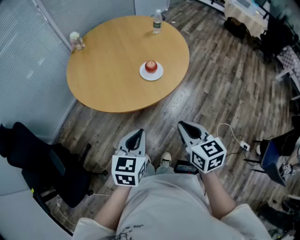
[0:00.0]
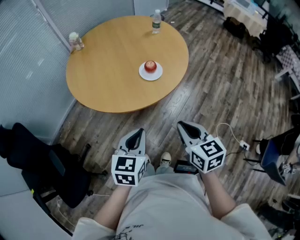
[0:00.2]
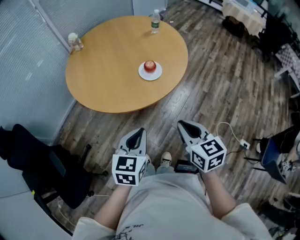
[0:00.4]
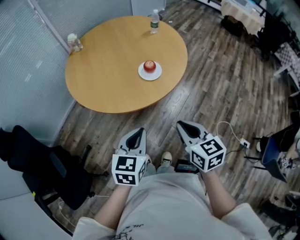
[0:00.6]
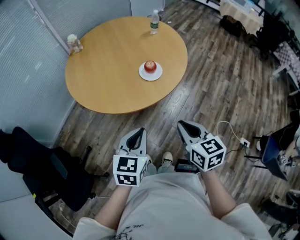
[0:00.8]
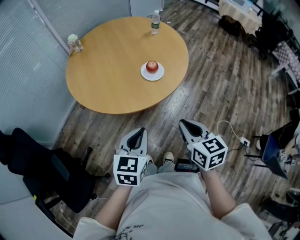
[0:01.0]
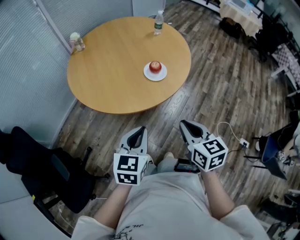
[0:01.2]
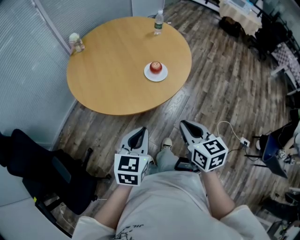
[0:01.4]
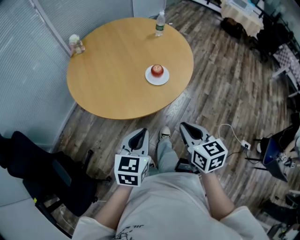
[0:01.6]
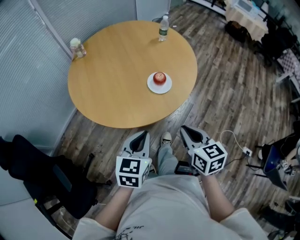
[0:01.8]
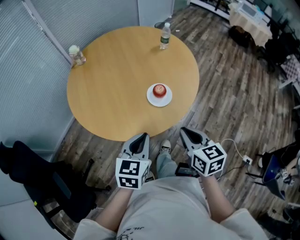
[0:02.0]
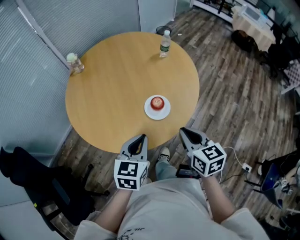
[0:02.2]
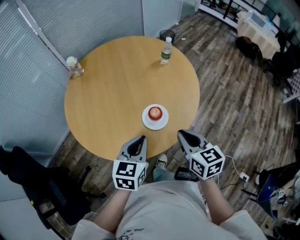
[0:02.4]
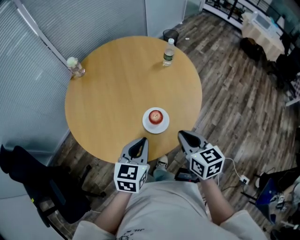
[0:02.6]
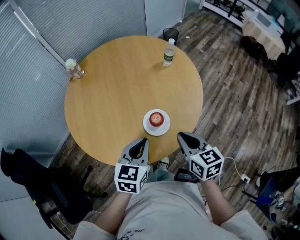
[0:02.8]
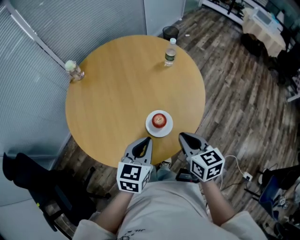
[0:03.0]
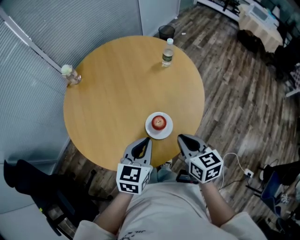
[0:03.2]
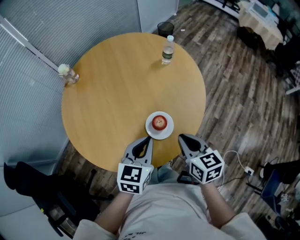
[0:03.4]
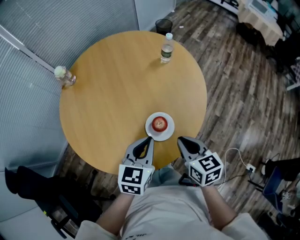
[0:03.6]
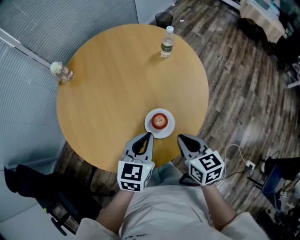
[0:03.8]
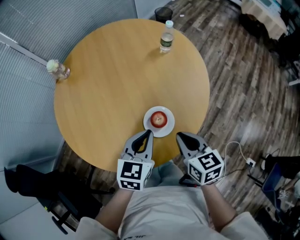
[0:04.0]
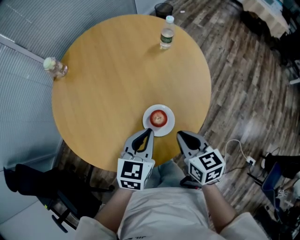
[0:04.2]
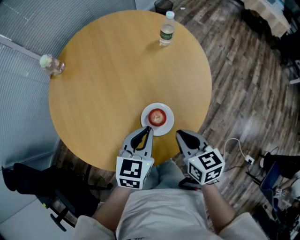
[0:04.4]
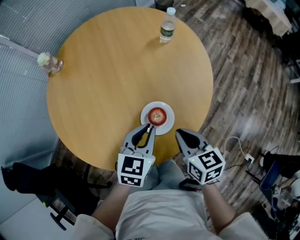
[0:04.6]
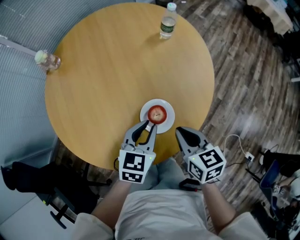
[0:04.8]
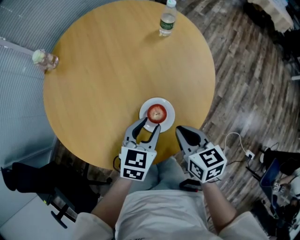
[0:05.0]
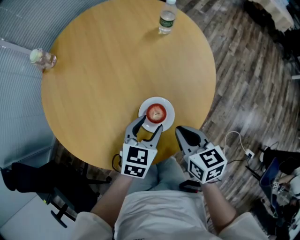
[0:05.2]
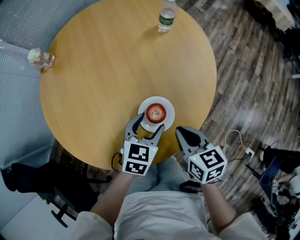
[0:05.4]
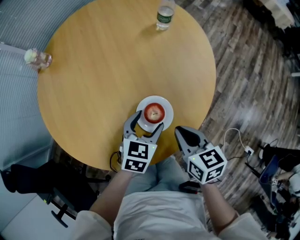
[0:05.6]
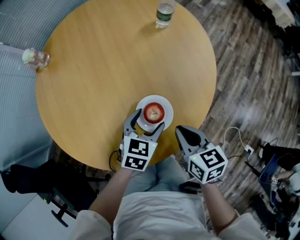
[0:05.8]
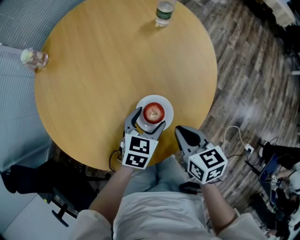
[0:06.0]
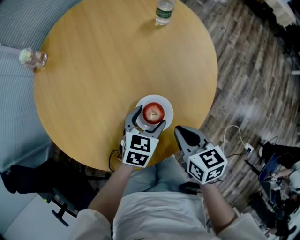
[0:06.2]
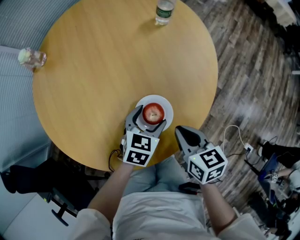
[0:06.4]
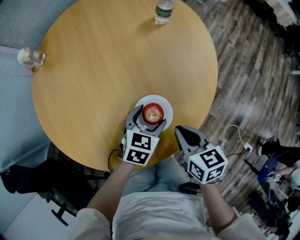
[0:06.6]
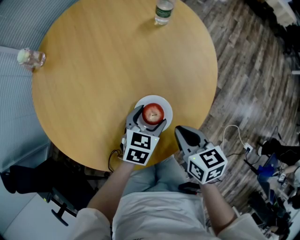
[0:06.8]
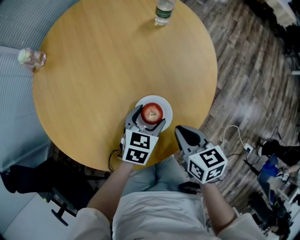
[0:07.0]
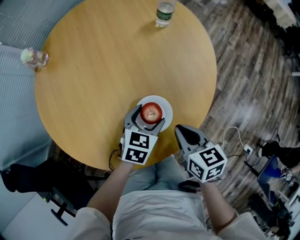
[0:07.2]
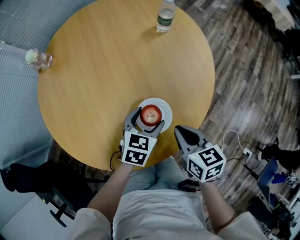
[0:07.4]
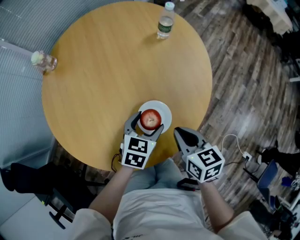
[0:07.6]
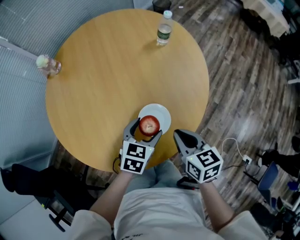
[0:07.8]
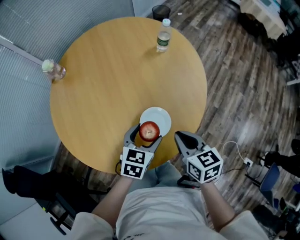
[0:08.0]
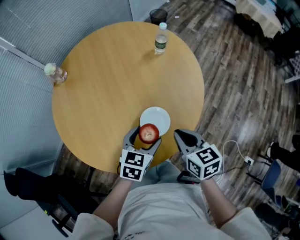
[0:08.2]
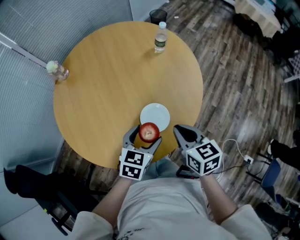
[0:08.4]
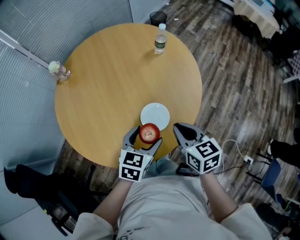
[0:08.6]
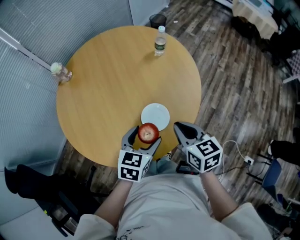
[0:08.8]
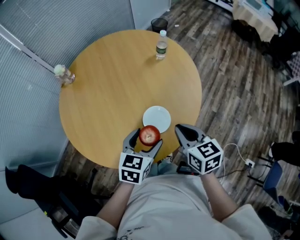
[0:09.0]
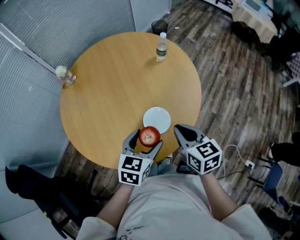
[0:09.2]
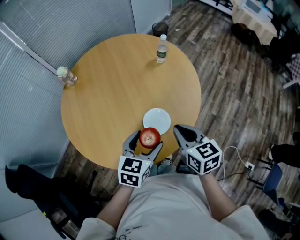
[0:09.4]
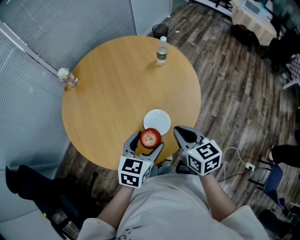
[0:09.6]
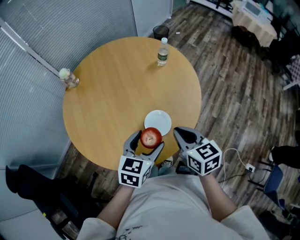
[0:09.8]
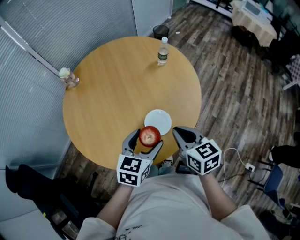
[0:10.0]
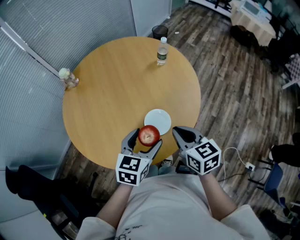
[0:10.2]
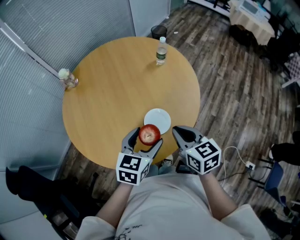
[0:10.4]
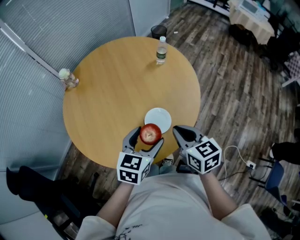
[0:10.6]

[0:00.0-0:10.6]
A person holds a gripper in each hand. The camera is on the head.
0:00.0 to 0:01.6: The left gripper moves approximately 5 cm. Meanwhile the right gripper ends up about 5 cm from where it was.
0:01.6 to 0:03.0: Both grippers travel together forward, some 25 cm.
0:03.0 to 0:04.6: The left gripper travels downward and forward by some 10 cm, while the right gripper travels downward by about 10 cm.
0:04.6 to 0:06.0: The left gripper shifts some 10 cm downward, and opens its fingers.
0:06.0 to 0:07.6: There are only small adjustments of the grippers.
0:07.6 to 0:09.0: The left gripper is displaced upward and backward by some 15 cm, while the right gripper moves upward, approximately 10 cm.
0:09.0 to 0:10.6: There are only small adjustments of the grippers.

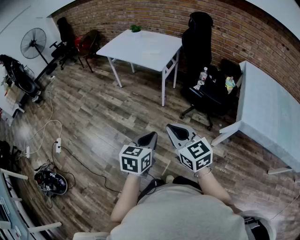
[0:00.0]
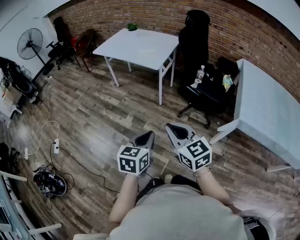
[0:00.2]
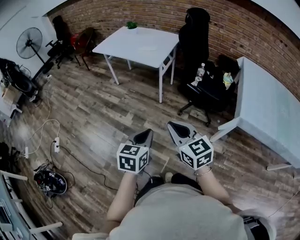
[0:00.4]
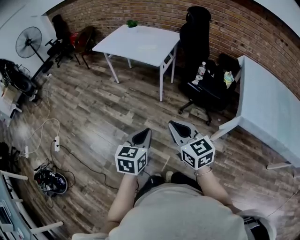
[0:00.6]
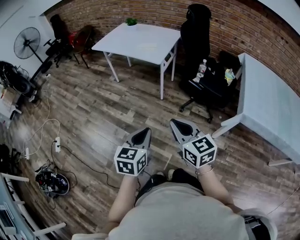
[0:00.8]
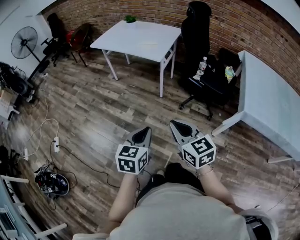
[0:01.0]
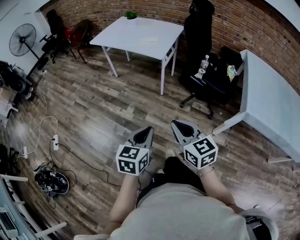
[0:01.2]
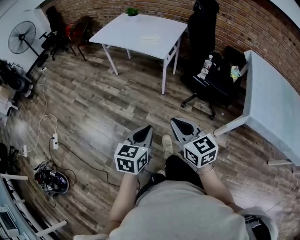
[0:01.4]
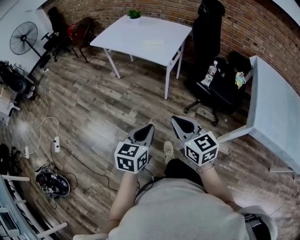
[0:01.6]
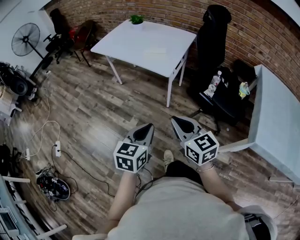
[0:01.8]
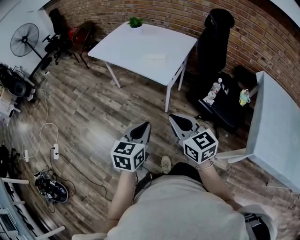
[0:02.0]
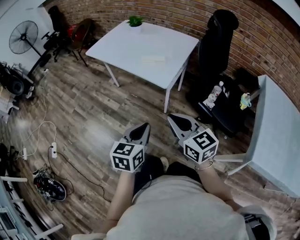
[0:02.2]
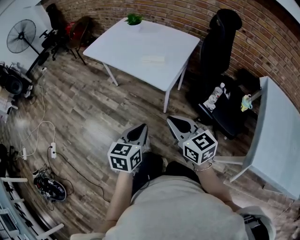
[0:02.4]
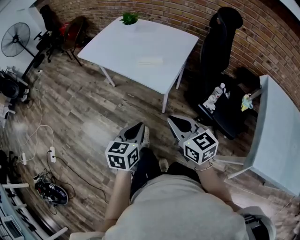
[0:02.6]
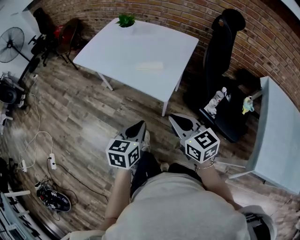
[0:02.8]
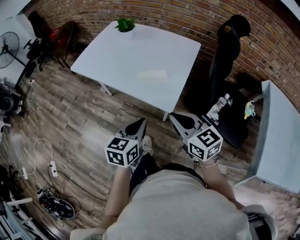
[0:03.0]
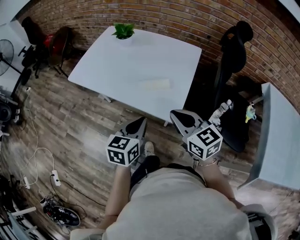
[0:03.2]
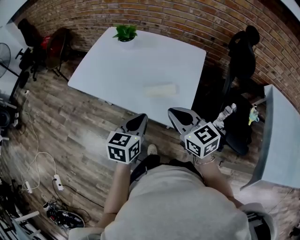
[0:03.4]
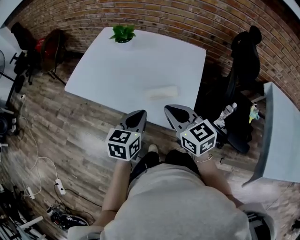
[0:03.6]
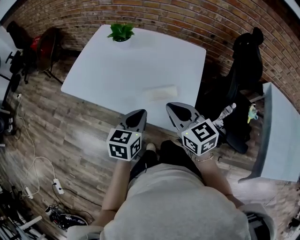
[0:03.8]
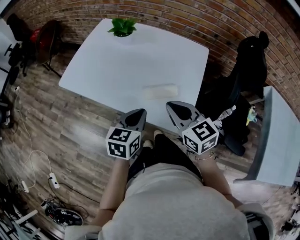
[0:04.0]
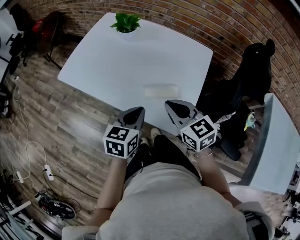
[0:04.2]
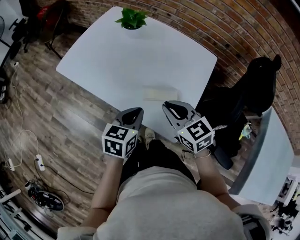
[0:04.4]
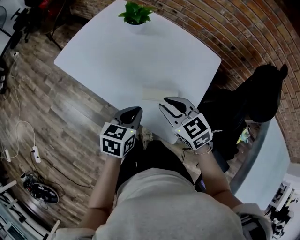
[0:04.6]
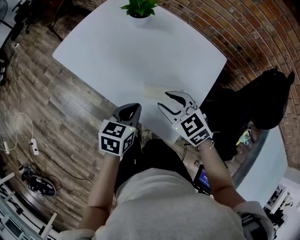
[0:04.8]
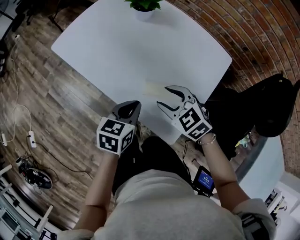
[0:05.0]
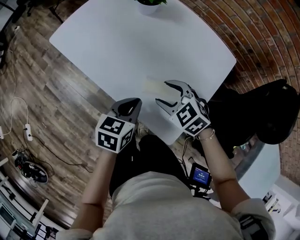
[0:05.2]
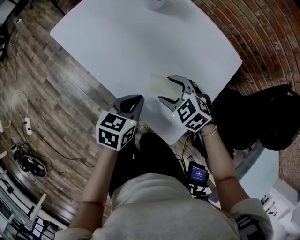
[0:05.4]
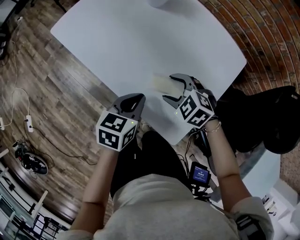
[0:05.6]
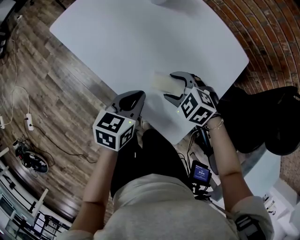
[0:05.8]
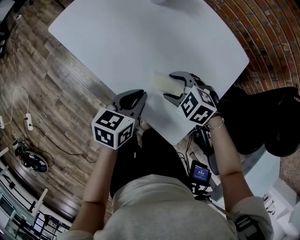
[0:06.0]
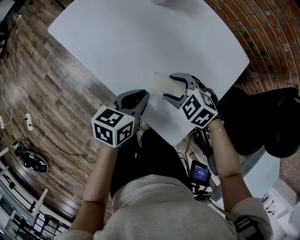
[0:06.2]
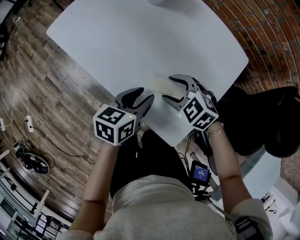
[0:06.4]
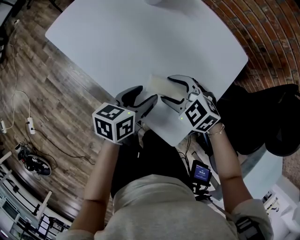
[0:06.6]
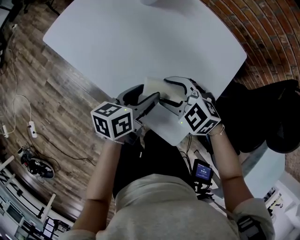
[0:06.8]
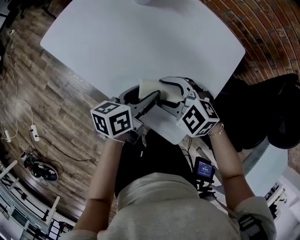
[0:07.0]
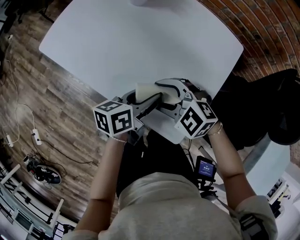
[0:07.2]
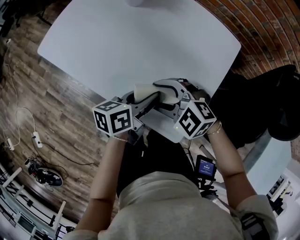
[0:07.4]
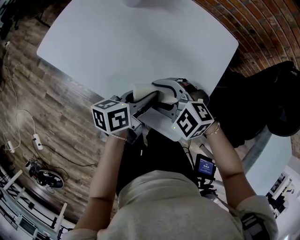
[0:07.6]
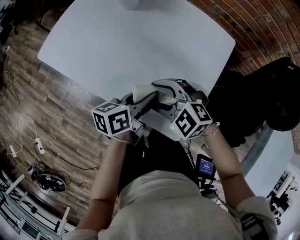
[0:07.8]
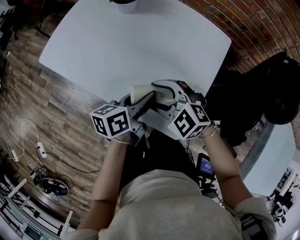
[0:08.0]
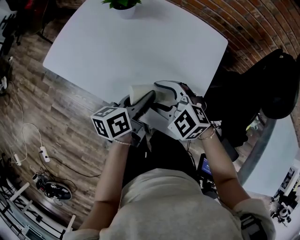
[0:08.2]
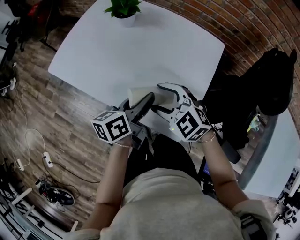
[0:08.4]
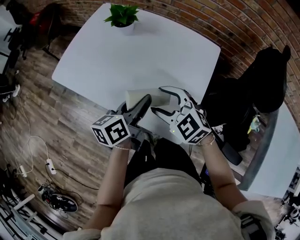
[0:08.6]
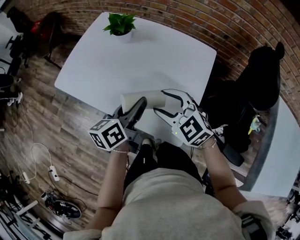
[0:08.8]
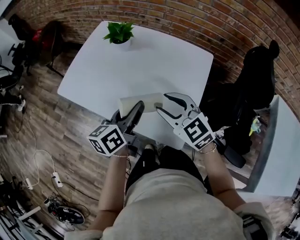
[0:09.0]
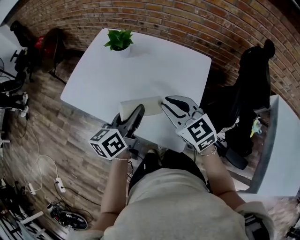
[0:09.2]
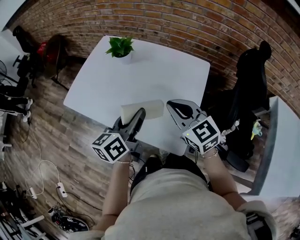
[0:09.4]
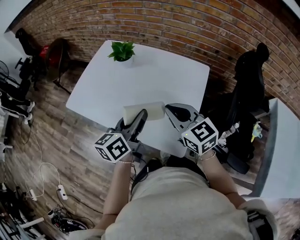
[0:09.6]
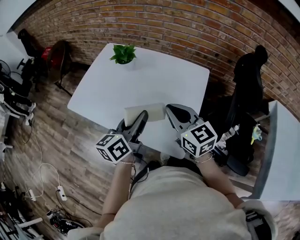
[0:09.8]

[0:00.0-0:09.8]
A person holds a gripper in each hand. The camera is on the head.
0:00.0 to 0:01.4: The left gripper heads to the left and forward, covering roughly 10 cm; the right gripper is displaced forward by approximately 5 cm.
0:01.4 to 0:02.8: The pair of grippers is taken forward, roughly 40 cm.
0:02.8 to 0:04.2: The two grippers go about 30 cm forward.
0:04.2 to 0:05.6: The left gripper shifts some 10 cm downward. Meanwhile the right gripper travels downward and forward by some 20 cm, angles its fingers downward, by roughly 30 degrees, and opens.
0:05.6 to 0:07.0: The left gripper swivels some 30 degrees, and opens up; the right gripper shifts by roughly 5 cm.
0:07.0 to 0:08.4: Both grippers move upward, some 5 cm. The left gripper closes up.
0:08.4 to 0:09.8: The left gripper travels upward by approximately 10 cm; the right gripper heads upward and to the right, covering roughly 15 cm, rotates roughly 50 degrees, and closes.

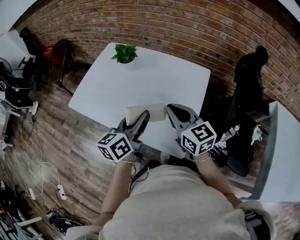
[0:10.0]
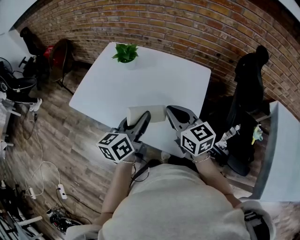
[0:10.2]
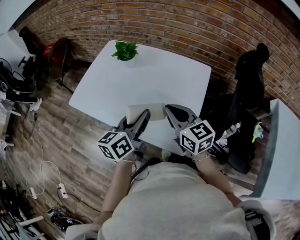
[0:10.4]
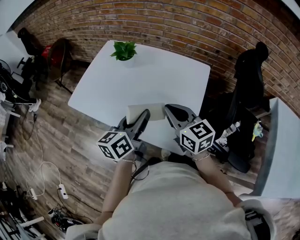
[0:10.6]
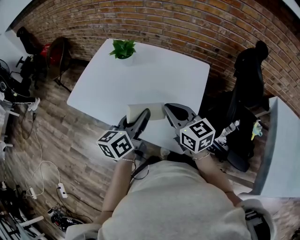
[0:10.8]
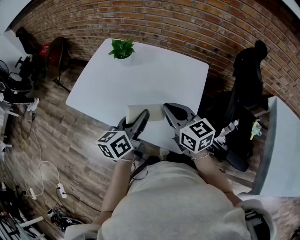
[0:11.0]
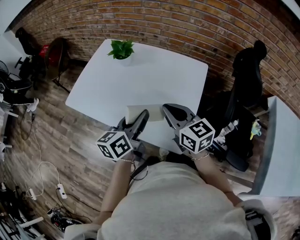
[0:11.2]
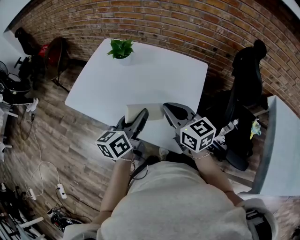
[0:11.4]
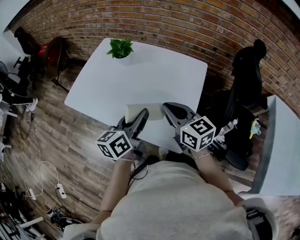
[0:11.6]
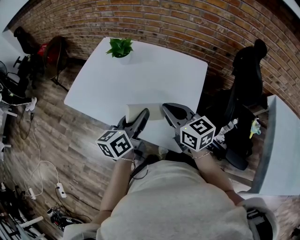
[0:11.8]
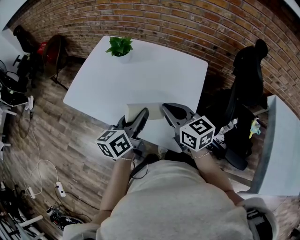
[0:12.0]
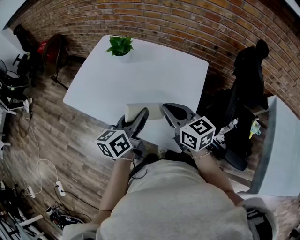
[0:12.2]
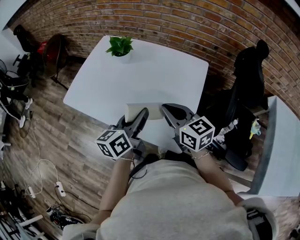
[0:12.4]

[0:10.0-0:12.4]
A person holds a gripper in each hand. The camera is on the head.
0:10.0 to 0:12.4: The grippers stay close to where they were, moving slightly.

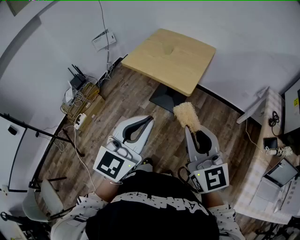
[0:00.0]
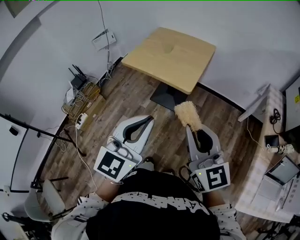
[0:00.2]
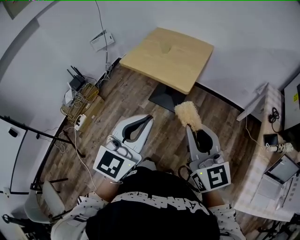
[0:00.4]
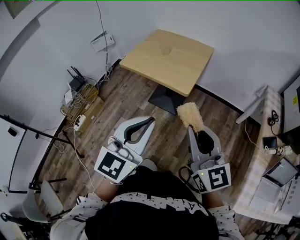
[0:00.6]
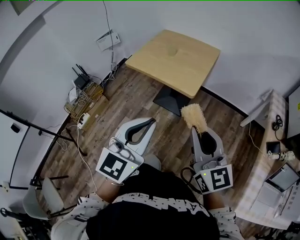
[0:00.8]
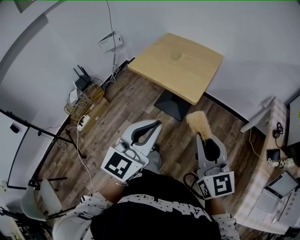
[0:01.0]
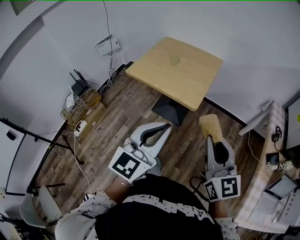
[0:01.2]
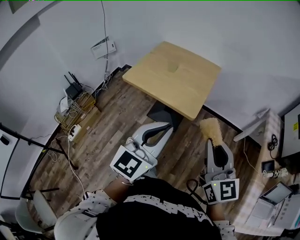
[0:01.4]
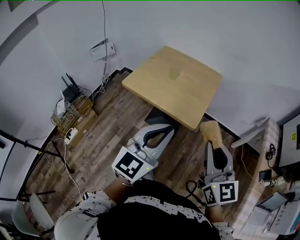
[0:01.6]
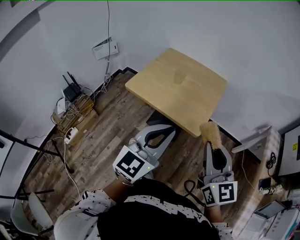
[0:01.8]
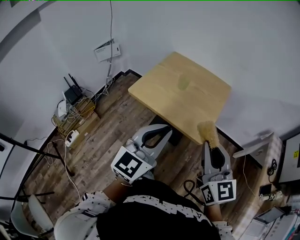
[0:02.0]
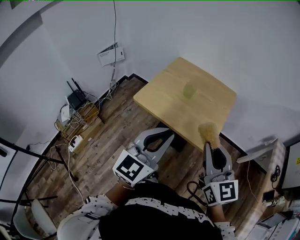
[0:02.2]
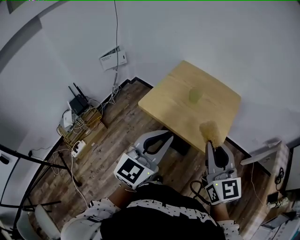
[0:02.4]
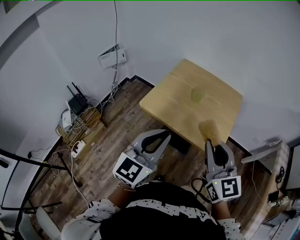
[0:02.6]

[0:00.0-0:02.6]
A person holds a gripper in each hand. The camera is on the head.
0:00.0 to 0:01.2: The two grippers go approximately 5 cm forward.
0:01.2 to 0:02.6: The two grippers go approximately 30 cm forward and to the left.
